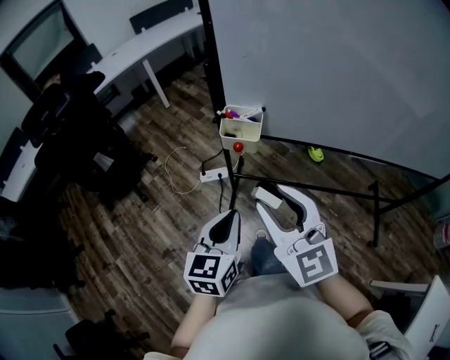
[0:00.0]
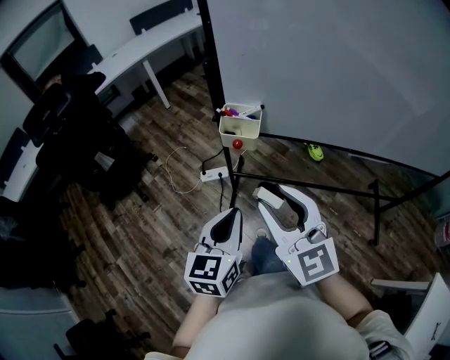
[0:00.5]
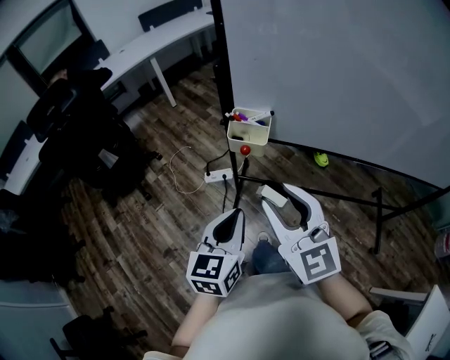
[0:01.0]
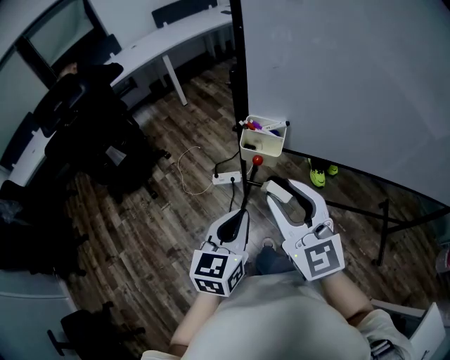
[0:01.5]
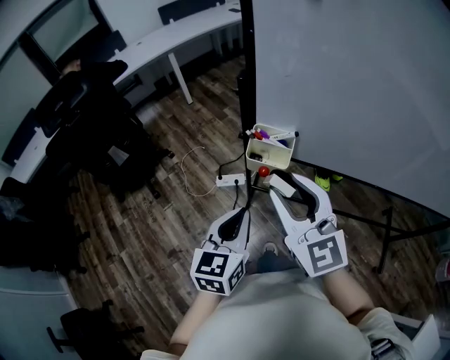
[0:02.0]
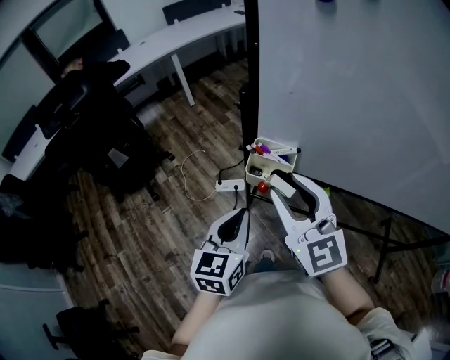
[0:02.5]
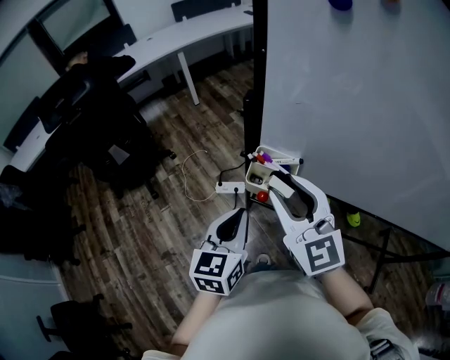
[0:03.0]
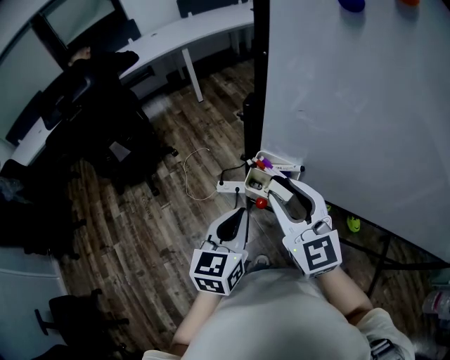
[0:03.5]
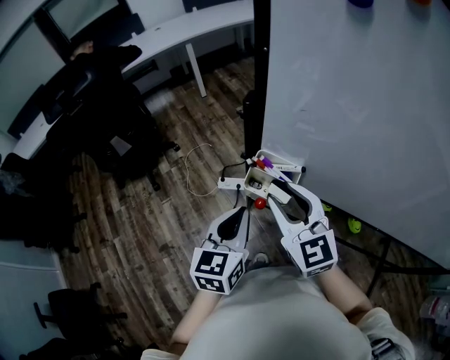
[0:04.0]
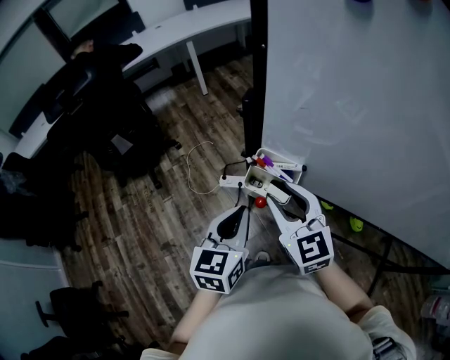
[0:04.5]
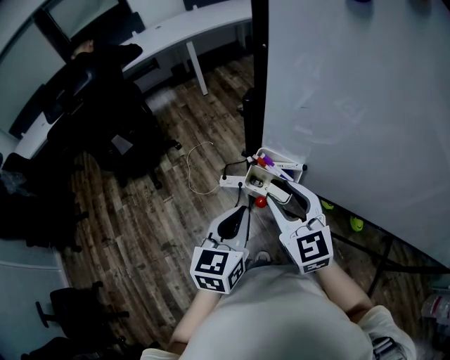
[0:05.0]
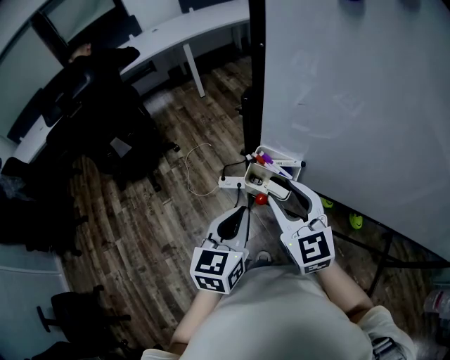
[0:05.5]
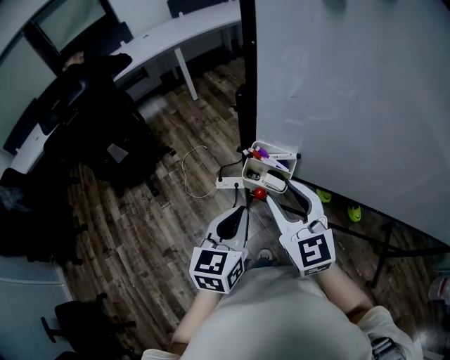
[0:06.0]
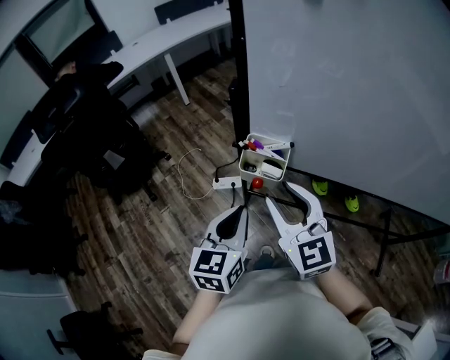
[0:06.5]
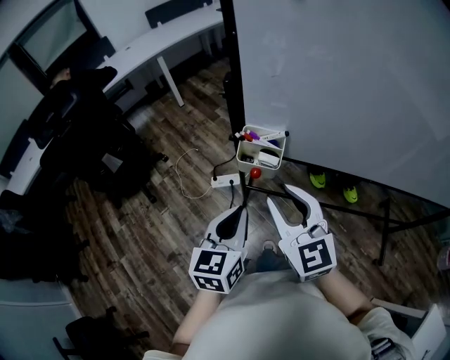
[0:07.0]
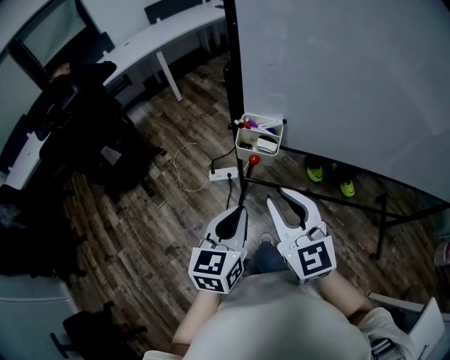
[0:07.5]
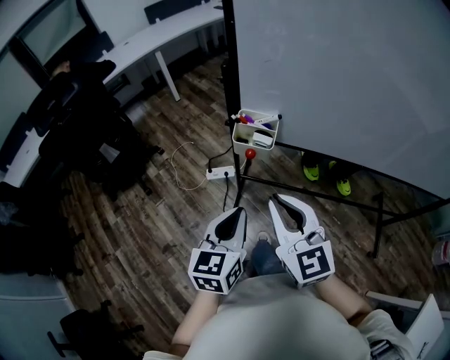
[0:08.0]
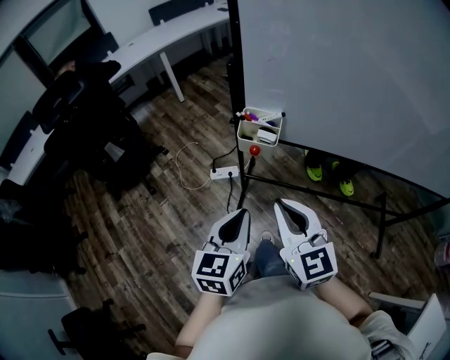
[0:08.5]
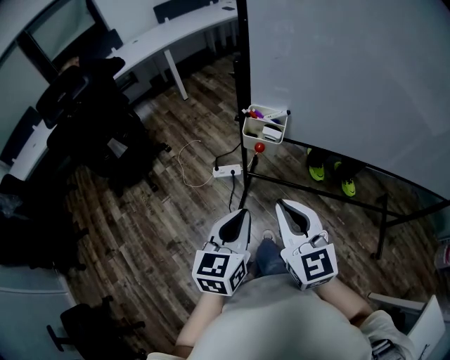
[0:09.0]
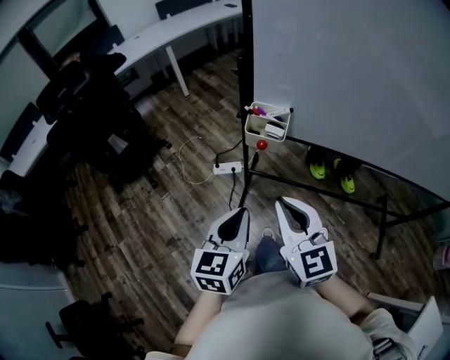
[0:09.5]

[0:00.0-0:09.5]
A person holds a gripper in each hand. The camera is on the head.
0:00.0 to 0:02.0: The grippers both shift forward by some 10 cm.
0:02.0 to 0:04.0: The right gripper is displaced forward and downward by approximately 10 cm. The left gripper travels forward by about 10 cm.
0:04.0 to 0:05.5: The grippers move only a little.
0:05.5 to 0:07.5: Both grippers move backward, some 15 cm. The right gripper closes its fingers.
0:07.5 to 0:09.5: Both grippers move backward, roughly 5 cm.

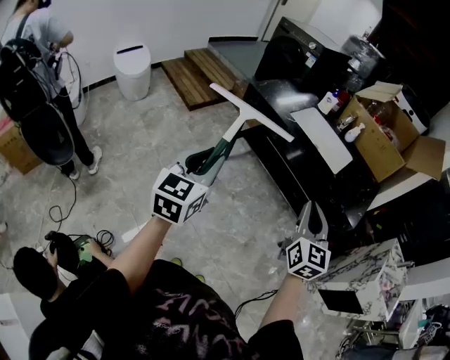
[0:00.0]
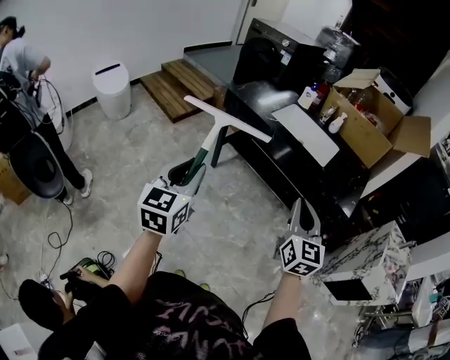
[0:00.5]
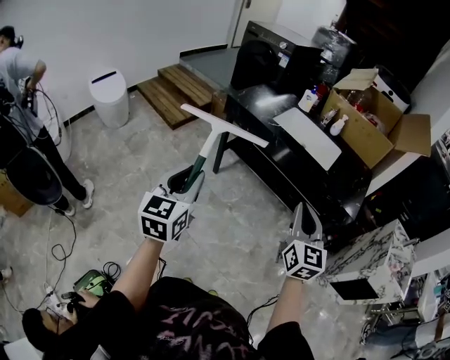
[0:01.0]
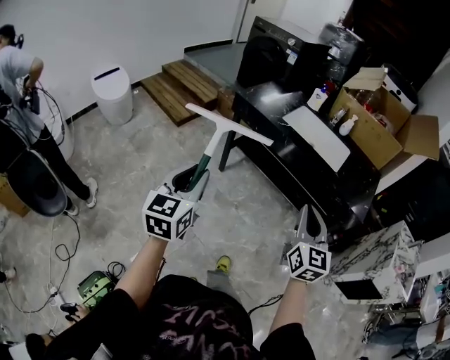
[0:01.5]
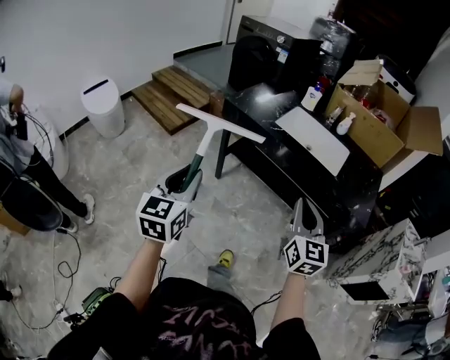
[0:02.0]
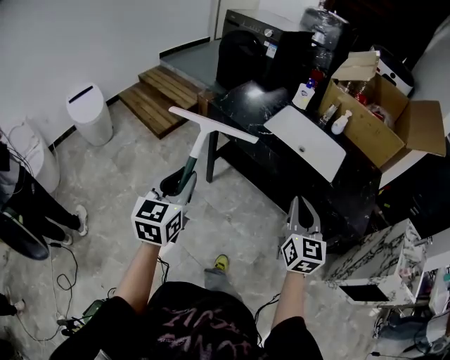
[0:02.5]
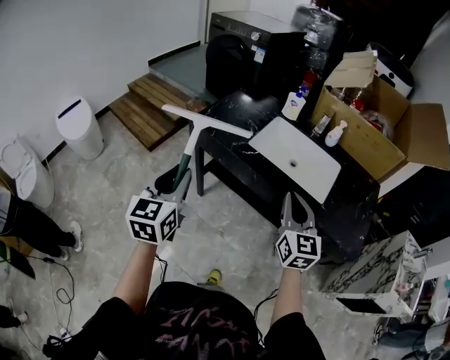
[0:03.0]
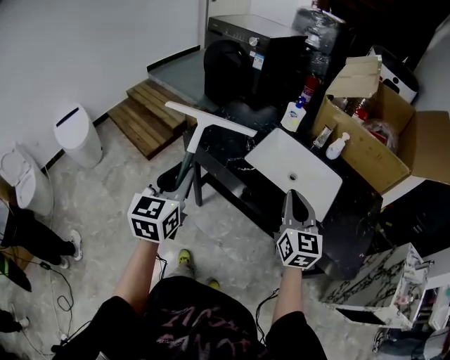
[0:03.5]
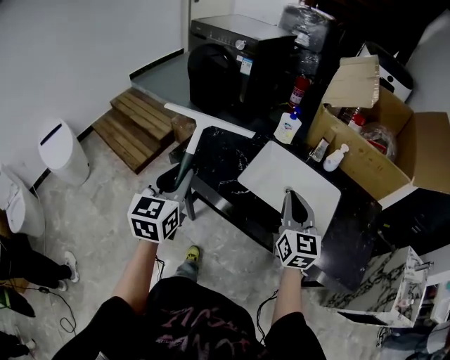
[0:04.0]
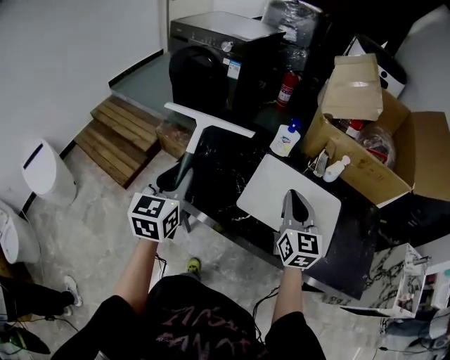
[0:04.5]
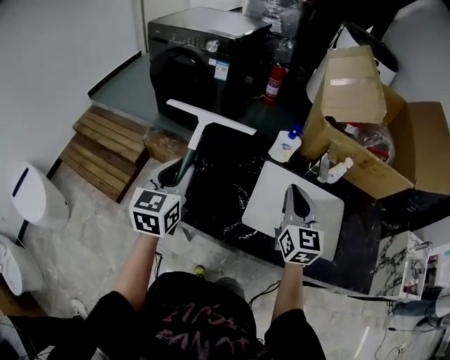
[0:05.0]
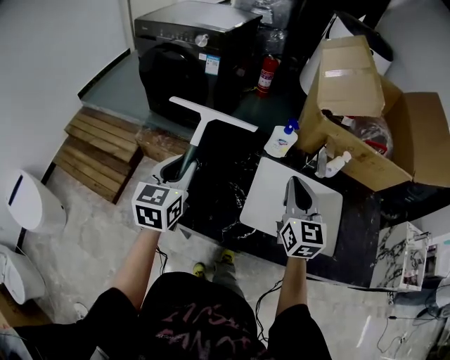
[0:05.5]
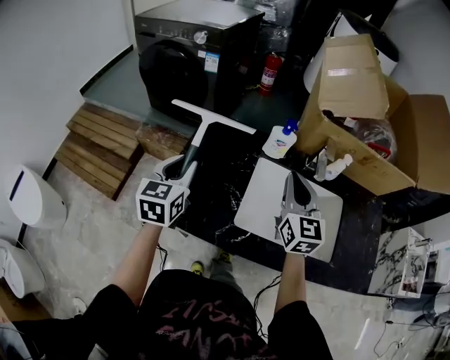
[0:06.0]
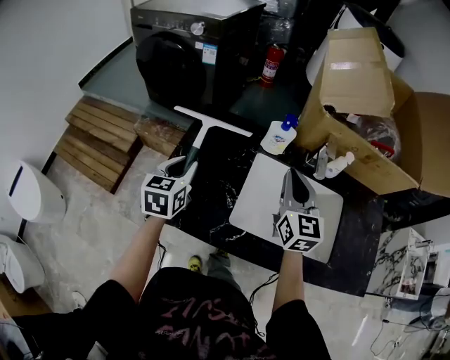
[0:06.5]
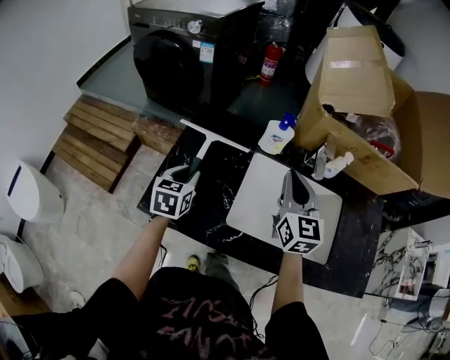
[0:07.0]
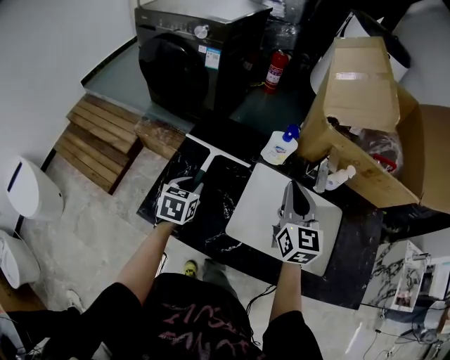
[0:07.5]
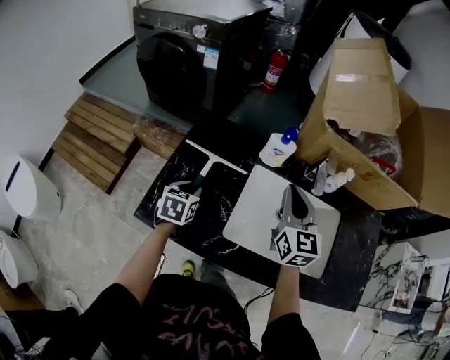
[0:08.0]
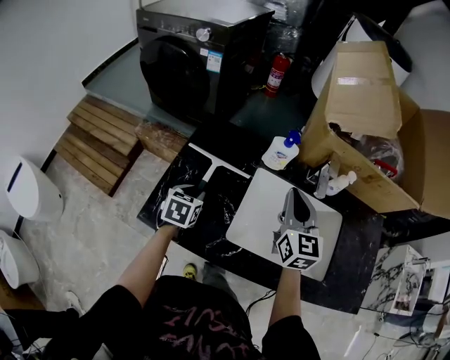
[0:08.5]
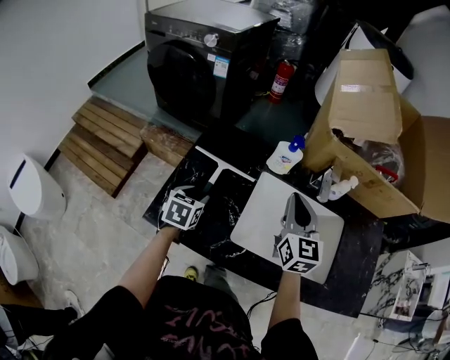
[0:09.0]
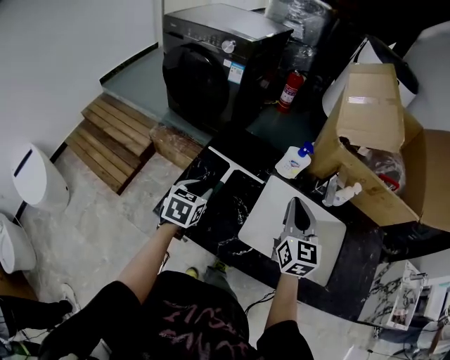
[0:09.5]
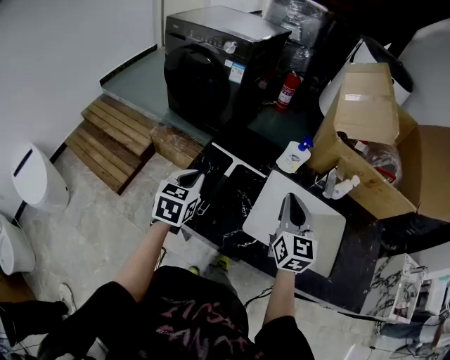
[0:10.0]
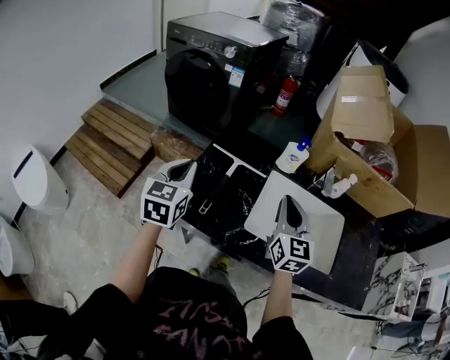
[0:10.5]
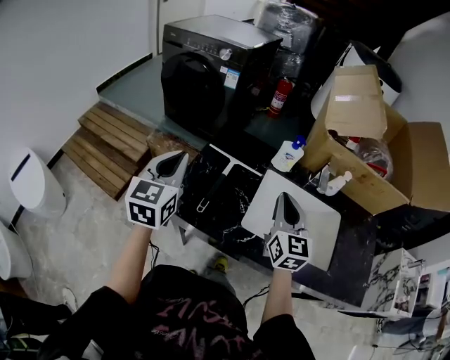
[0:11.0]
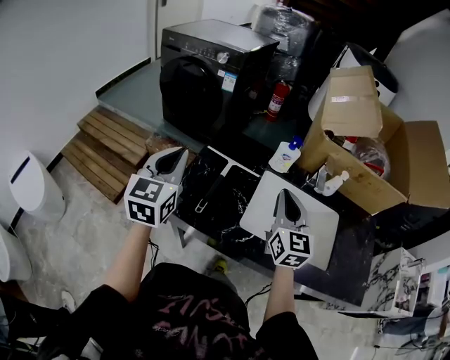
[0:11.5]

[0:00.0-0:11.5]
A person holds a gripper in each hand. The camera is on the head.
0:00.0 to 0:02.0: The grippers both shift forward and to the left by some 15 cm.
0:02.0 to 0:04.0: Both grippers are carried forward, approximately 40 cm.
0:04.0 to 0:06.0: The two grippers go roughly 25 cm forward.
0:06.0 to 0:07.5: The left gripper is displaced downward by approximately 15 cm, and turns by approximately 20 degrees.
0:07.5 to 0:09.5: The left gripper shifts by roughly 5 cm.
0:09.5 to 0:11.5: The left gripper heads upward, covering roughly 20 cm, angles its fingers upward, by approximately 30 degrees, and closes its fingers; the right gripper goes approximately 5 cm backward.

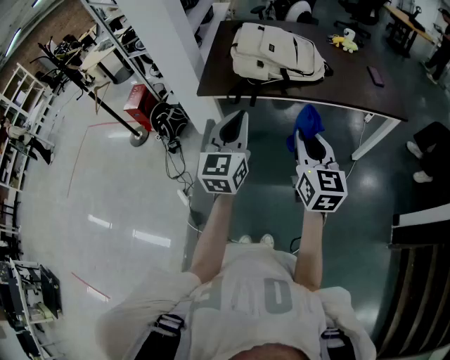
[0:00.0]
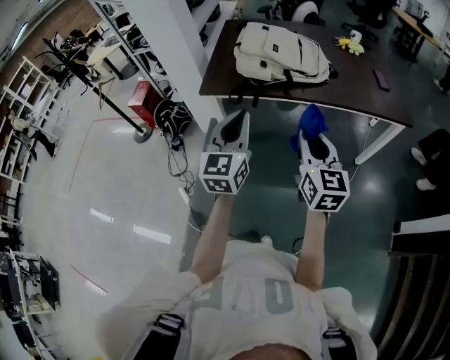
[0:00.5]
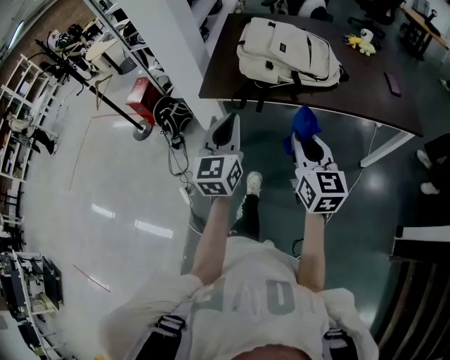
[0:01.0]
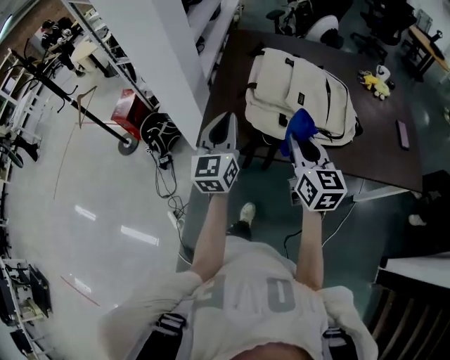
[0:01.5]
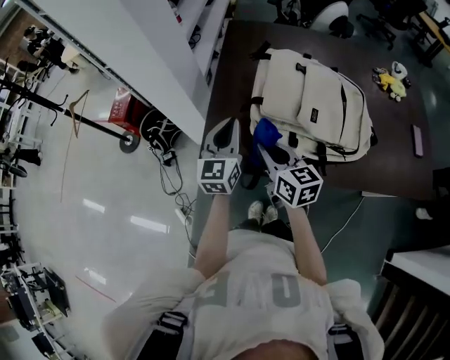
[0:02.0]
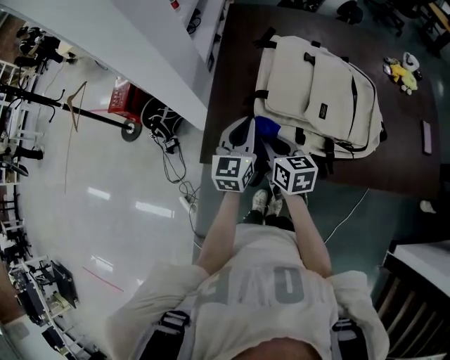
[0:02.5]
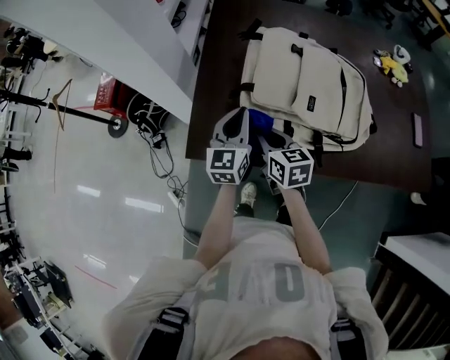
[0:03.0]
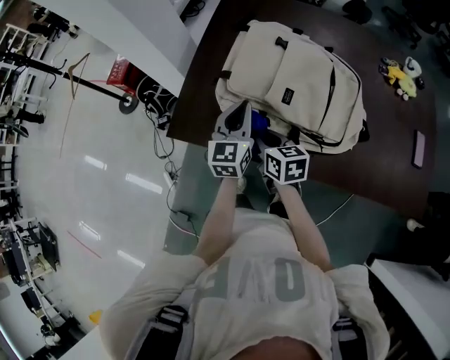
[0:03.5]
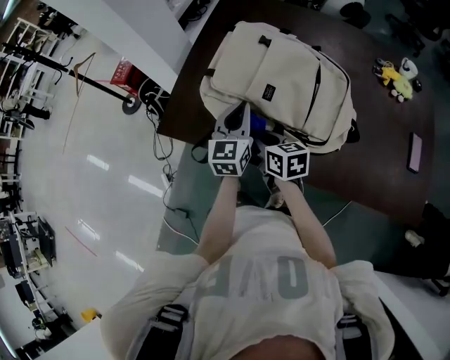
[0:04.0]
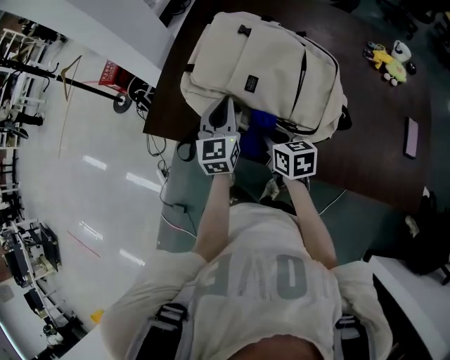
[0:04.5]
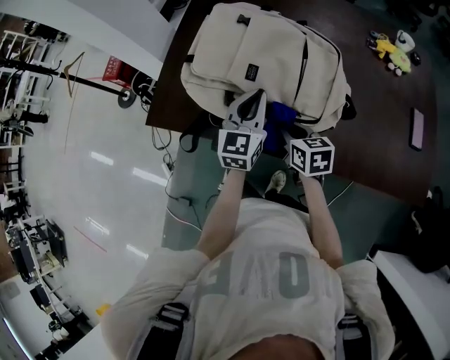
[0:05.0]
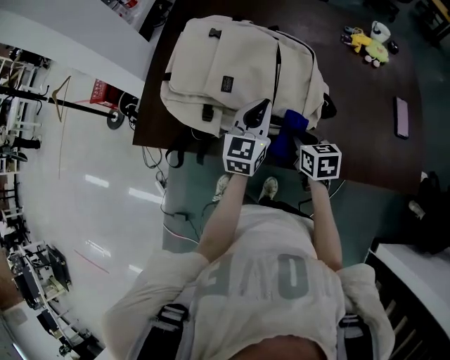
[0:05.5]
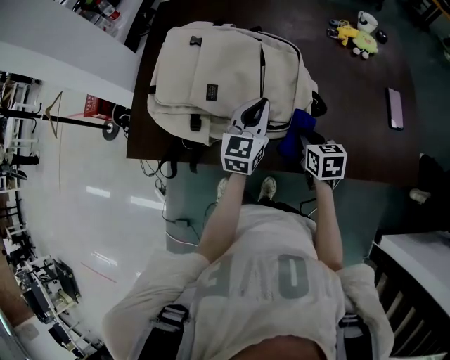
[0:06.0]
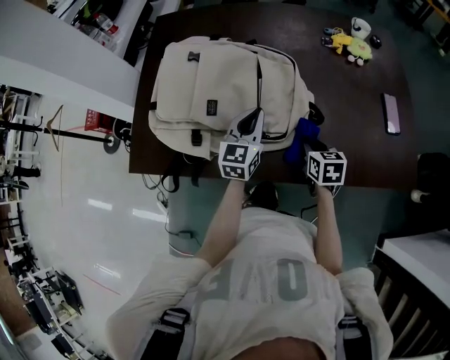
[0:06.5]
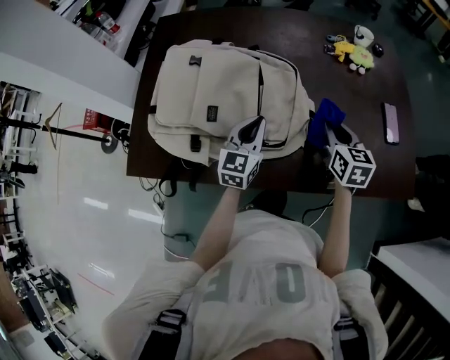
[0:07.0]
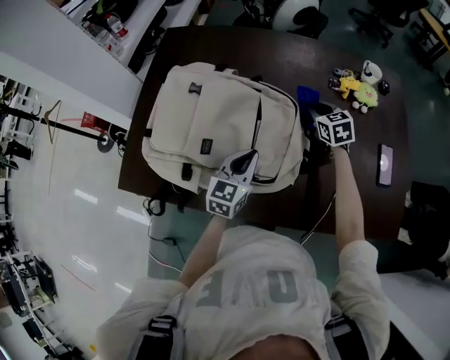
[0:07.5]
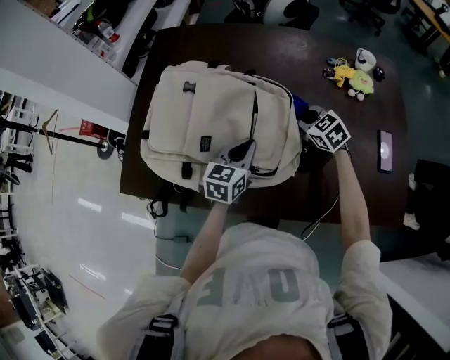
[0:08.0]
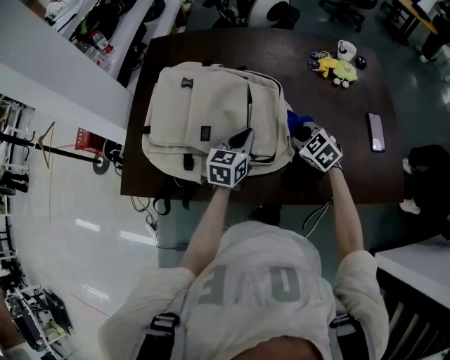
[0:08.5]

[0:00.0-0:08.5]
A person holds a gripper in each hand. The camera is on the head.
0:00.0 to 0:02.0: Both grippers are carried forward, approximately 50 cm. The right gripper changes its angle by about 30 degrees.
0:02.0 to 0:04.0: The left gripper moves to the right, approximately 15 cm; the right gripper shifts some 15 cm to the right and downward, and swivels roughly 20 degrees.
0:04.0 to 0:06.5: The right gripper shifts by roughly 30 cm, and turns by approximately 30 degrees, while the left gripper changes place by approximately 20 cm, and swivels roughly 20 degrees.
0:06.5 to 0:08.5: The right gripper moves some 25 cm forward and comes back, and twists approximately 50 degrees counterclockwise, seen from behind.
